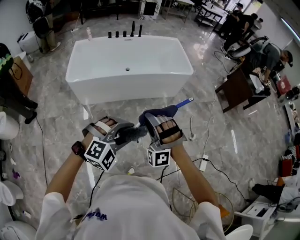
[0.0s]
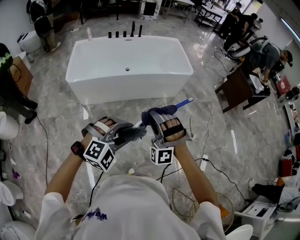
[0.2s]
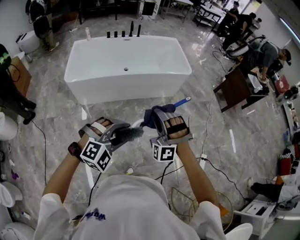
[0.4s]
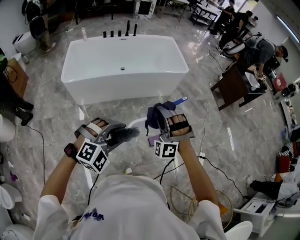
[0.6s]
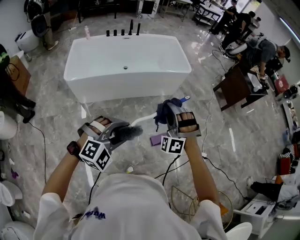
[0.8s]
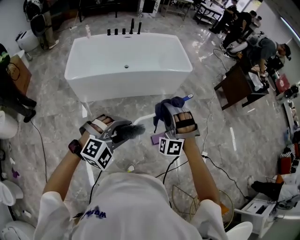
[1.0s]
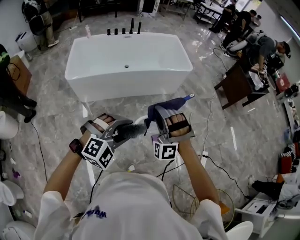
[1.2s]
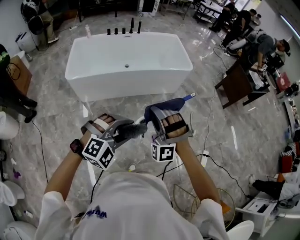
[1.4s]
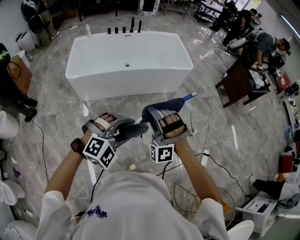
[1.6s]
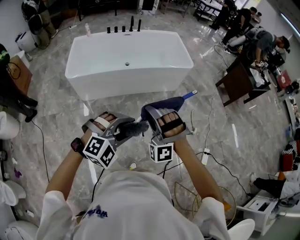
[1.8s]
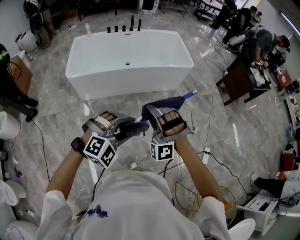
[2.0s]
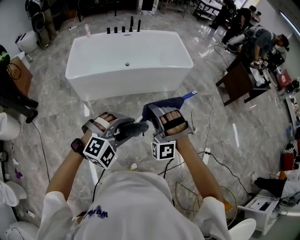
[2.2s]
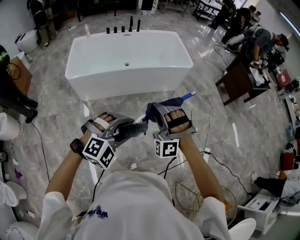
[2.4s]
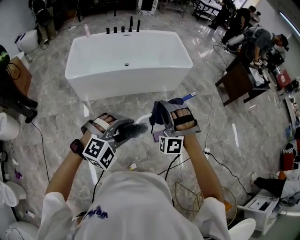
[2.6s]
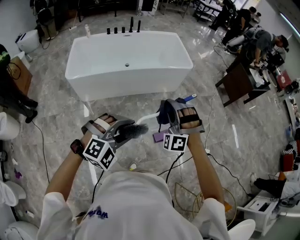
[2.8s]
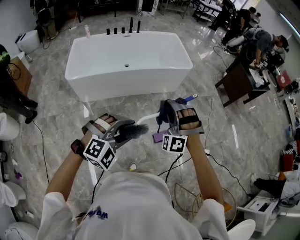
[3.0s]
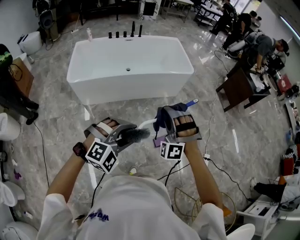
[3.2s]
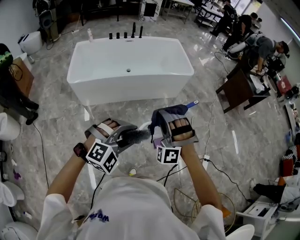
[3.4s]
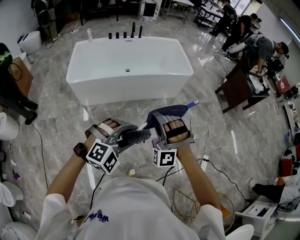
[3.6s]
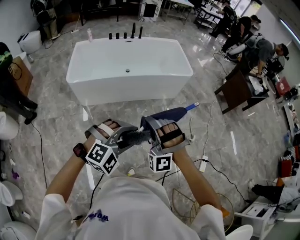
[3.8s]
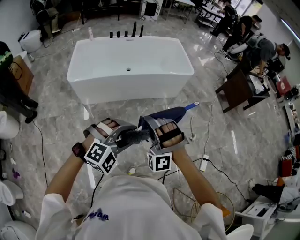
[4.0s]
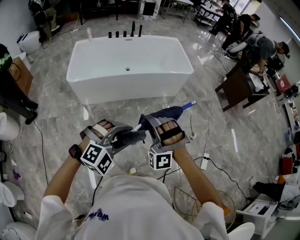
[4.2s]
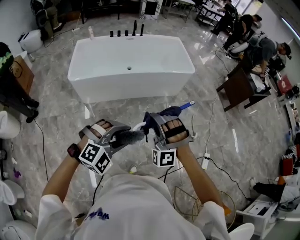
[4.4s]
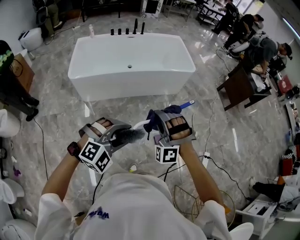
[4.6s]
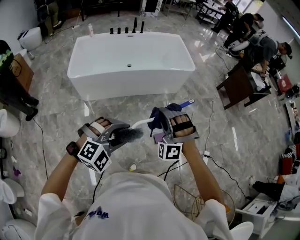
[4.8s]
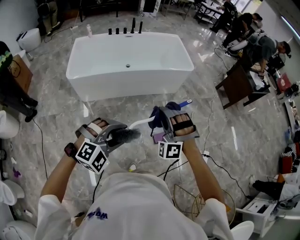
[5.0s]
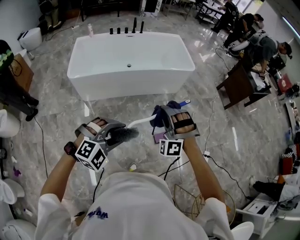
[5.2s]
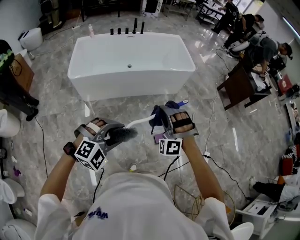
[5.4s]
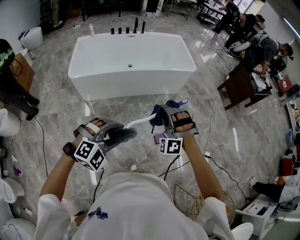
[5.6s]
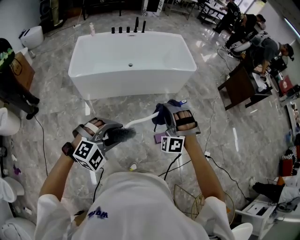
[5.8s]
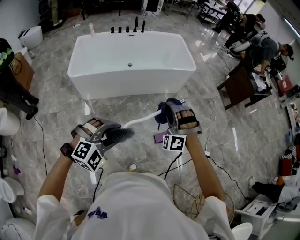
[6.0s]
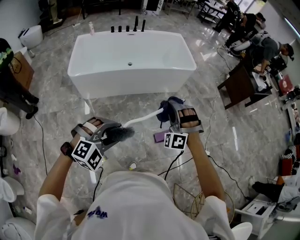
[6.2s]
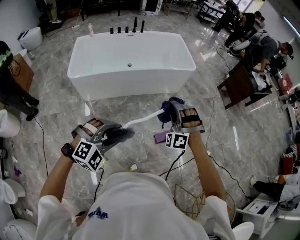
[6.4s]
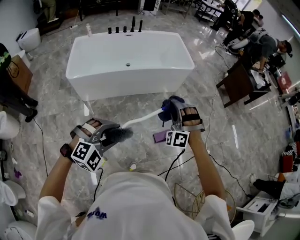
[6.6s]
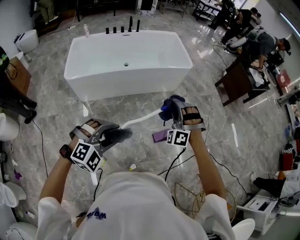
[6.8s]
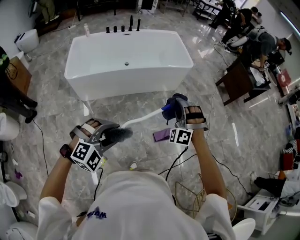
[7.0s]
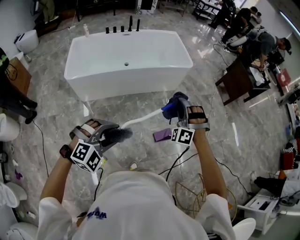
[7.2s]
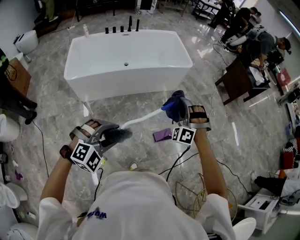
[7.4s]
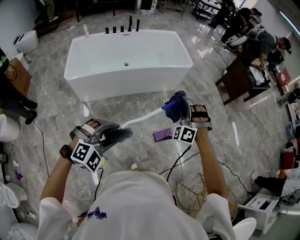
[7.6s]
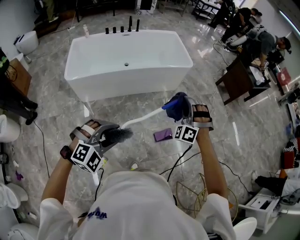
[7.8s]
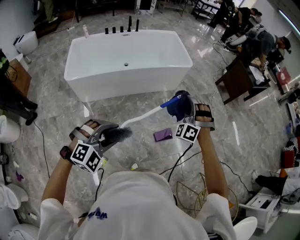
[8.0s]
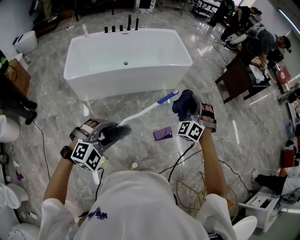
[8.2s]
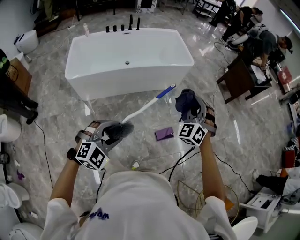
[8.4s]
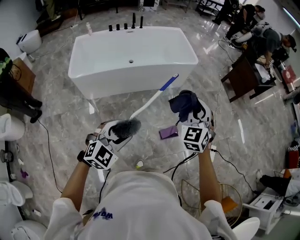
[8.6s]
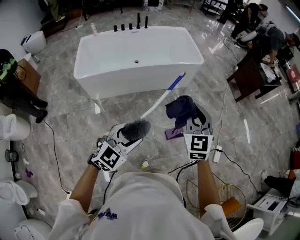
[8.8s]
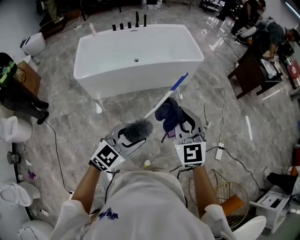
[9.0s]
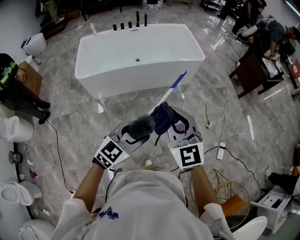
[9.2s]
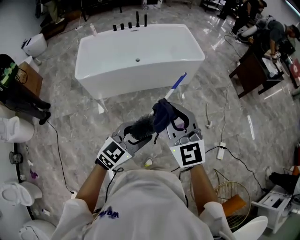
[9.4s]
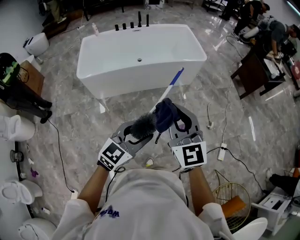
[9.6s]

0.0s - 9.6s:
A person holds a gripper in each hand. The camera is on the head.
3.2s - 4.8s: The left gripper moves approximately 5 cm.
8.0s - 9.6s: The left gripper ends up some 5 cm from where it was, and rotates around the line of its fingers by some 50 degrees, counterclockwise from behind.

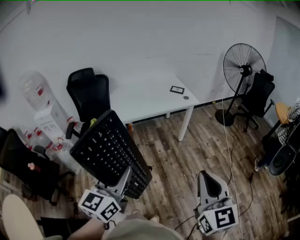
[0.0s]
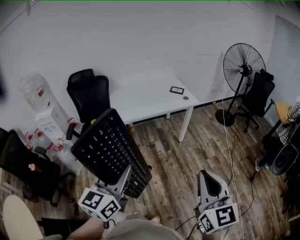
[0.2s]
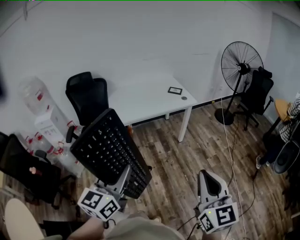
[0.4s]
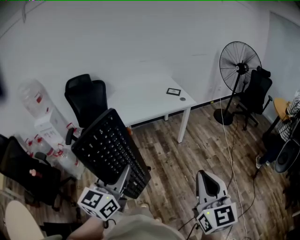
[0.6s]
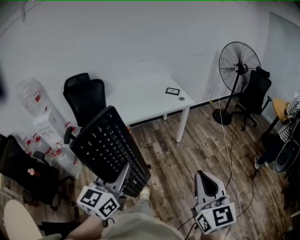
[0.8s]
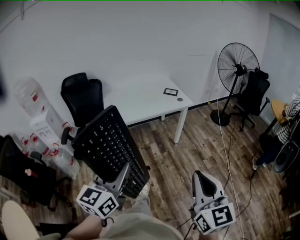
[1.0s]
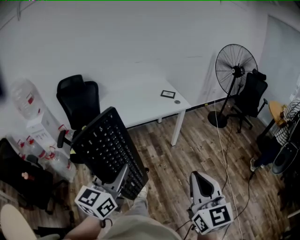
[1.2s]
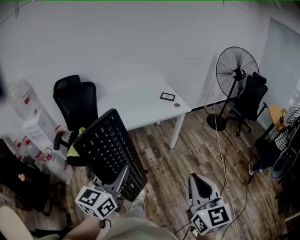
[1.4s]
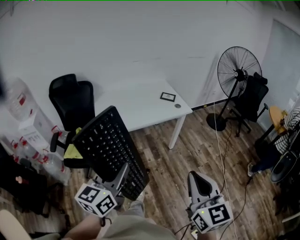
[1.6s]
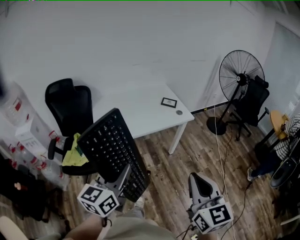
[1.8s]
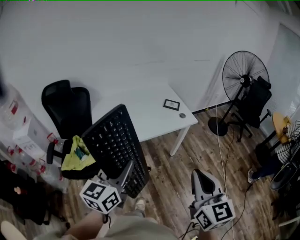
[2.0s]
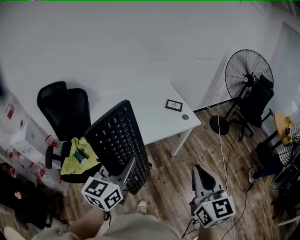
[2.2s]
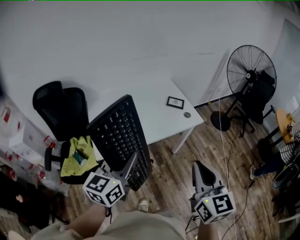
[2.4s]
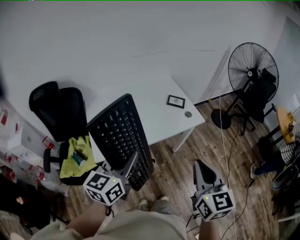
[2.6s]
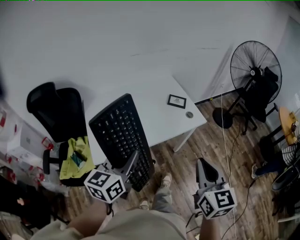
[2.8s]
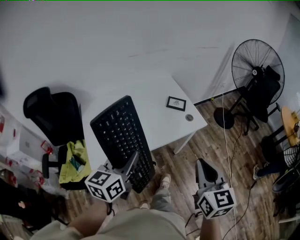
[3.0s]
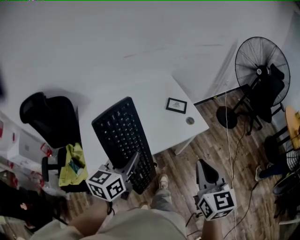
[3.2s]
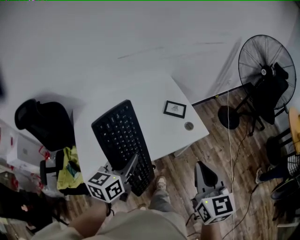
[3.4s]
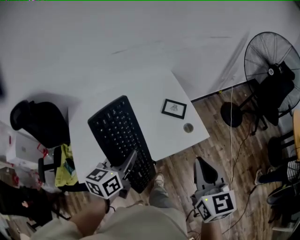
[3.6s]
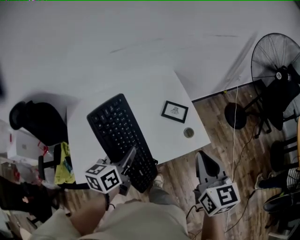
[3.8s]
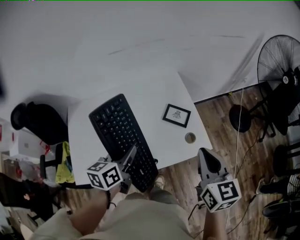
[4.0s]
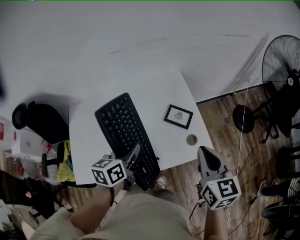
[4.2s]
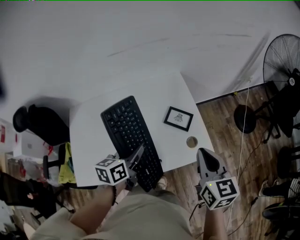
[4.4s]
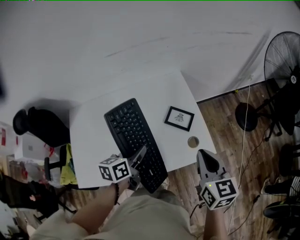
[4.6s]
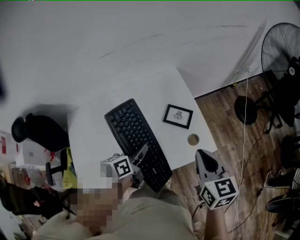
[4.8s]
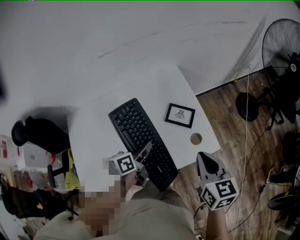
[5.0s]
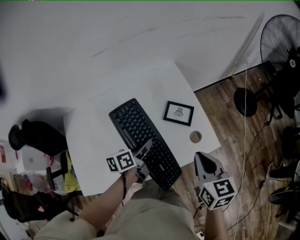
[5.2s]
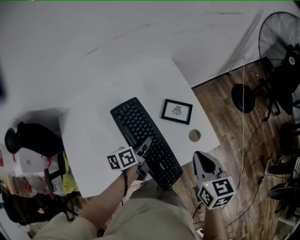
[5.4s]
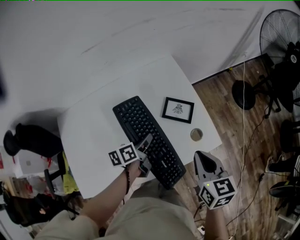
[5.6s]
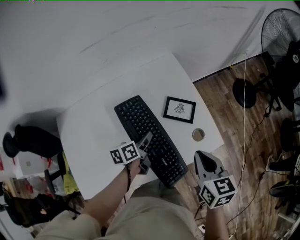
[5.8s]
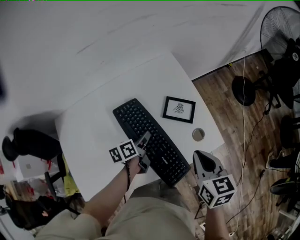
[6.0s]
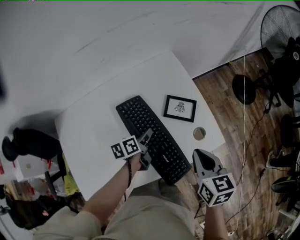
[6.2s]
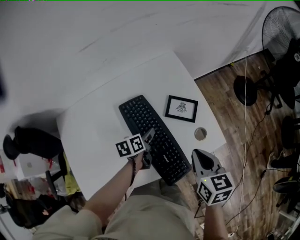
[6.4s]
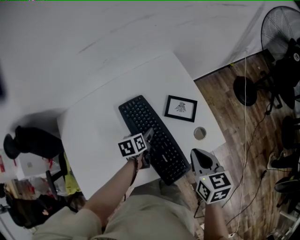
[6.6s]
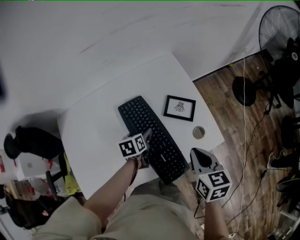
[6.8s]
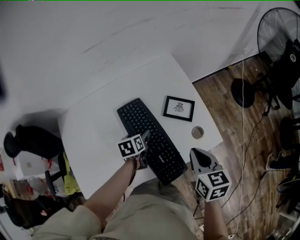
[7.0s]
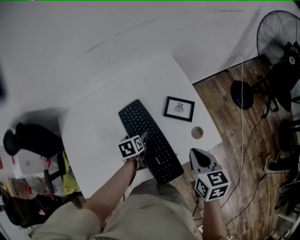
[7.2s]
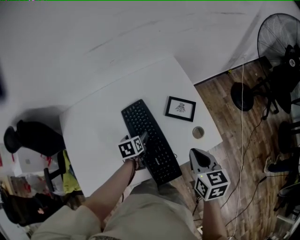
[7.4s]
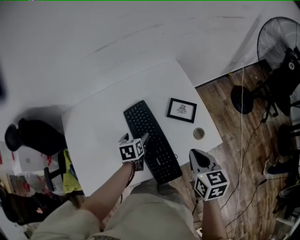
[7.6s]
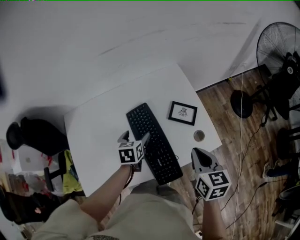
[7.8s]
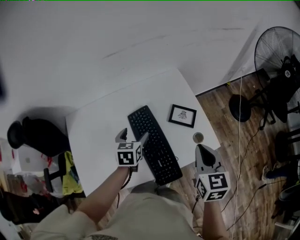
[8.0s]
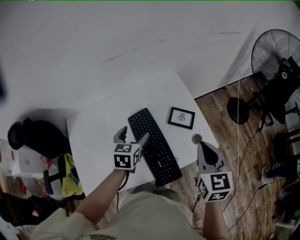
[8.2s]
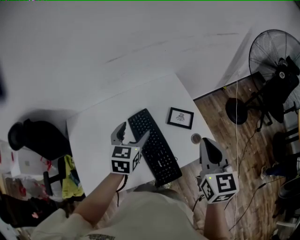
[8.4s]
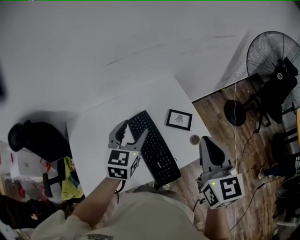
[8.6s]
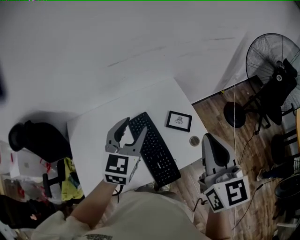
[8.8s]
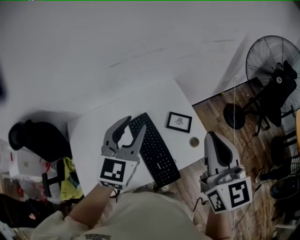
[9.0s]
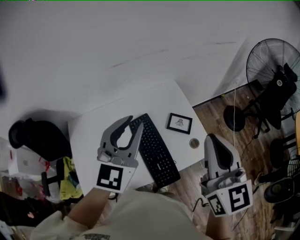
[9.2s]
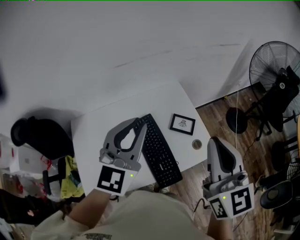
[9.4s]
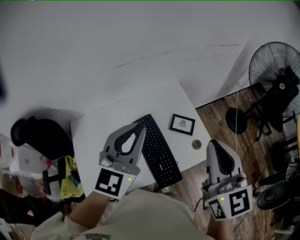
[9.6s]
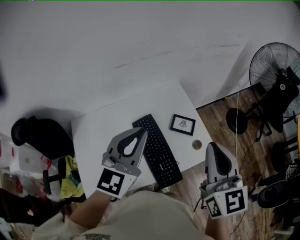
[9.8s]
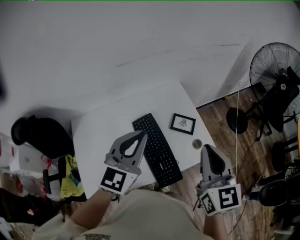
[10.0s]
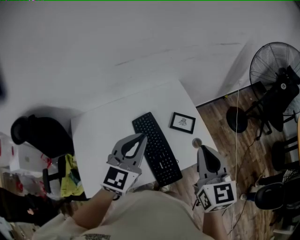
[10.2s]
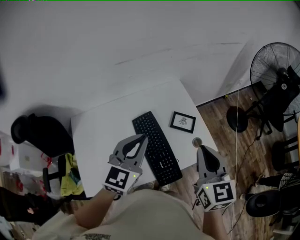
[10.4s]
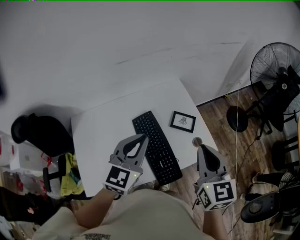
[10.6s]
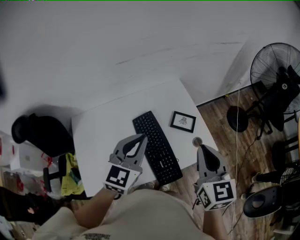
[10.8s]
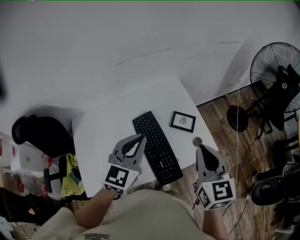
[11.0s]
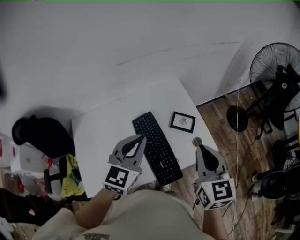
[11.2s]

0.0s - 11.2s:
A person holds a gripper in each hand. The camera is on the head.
0.0s - 1.6s: The grippers both shift forward by some 15 cm.
1.6s - 3.2s: The two grippers go roughly 40 cm forward.
3.2s - 4.8s: The right gripper heads forward, covering approximately 25 cm, while the left gripper is displaced forward and downward by about 30 cm, and changes its angle by some 30 degrees.
4.8s - 6.4s: The right gripper goes some 10 cm downward. The left gripper shifts approximately 15 cm downward and forward, and opens its fingers.
6.4s - 8.0s: The right gripper goes about 10 cm upward, while the left gripper heads upward and to the left, covering about 15 cm, swivels about 30 degrees, and opens.
8.0s - 9.6s: The left gripper shifts roughly 30 cm upward, tilts its fingers approximately 40 degrees upward, and closes up. Meanwhile the right gripper moves upward, about 20 cm, and rotates some 30 degrees.
9.6s - 11.2s: The grippers both shift downward by roughly 10 cm.

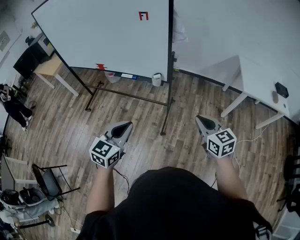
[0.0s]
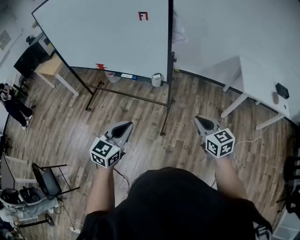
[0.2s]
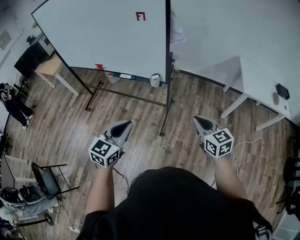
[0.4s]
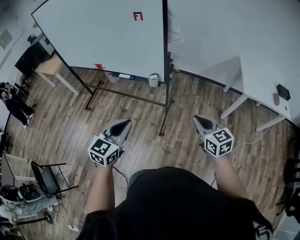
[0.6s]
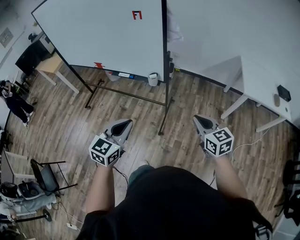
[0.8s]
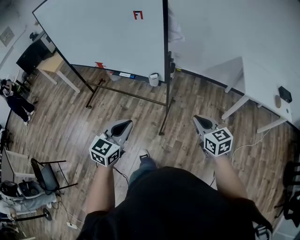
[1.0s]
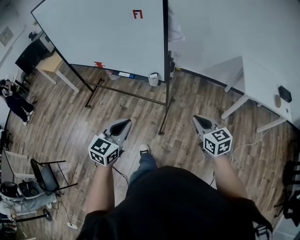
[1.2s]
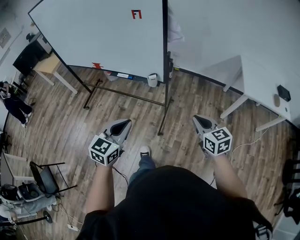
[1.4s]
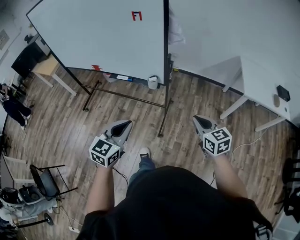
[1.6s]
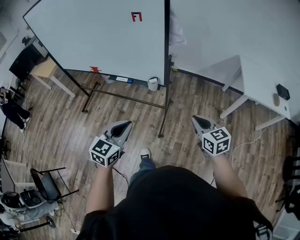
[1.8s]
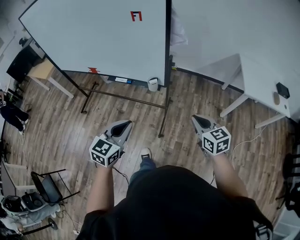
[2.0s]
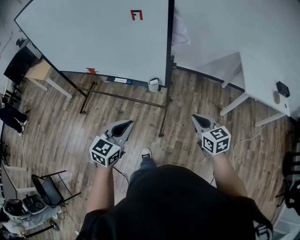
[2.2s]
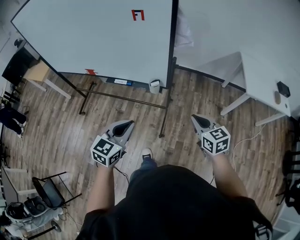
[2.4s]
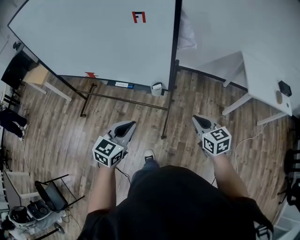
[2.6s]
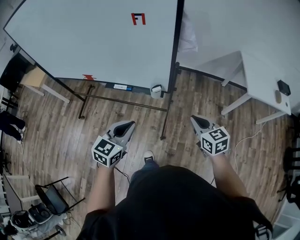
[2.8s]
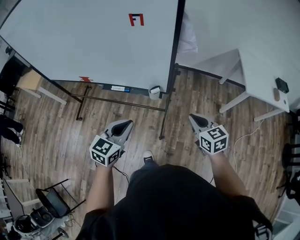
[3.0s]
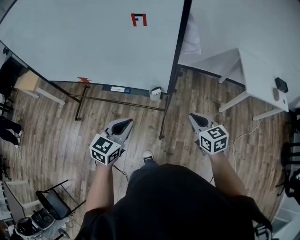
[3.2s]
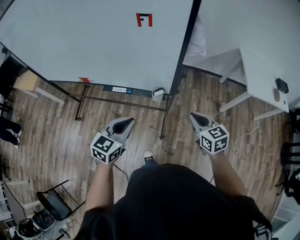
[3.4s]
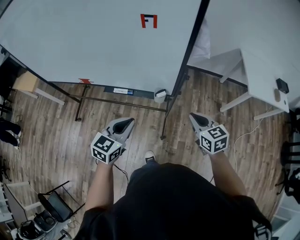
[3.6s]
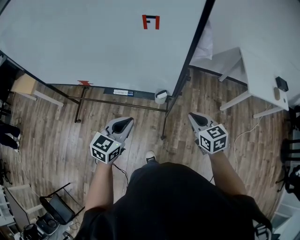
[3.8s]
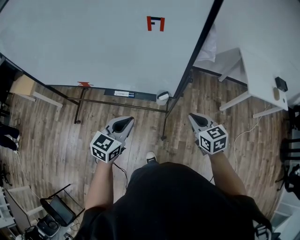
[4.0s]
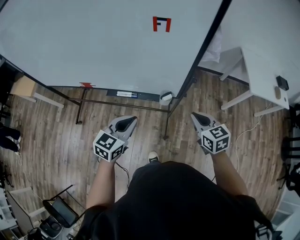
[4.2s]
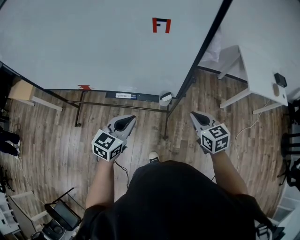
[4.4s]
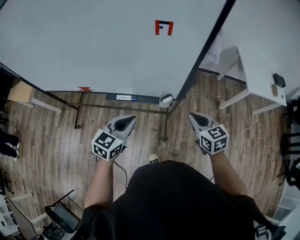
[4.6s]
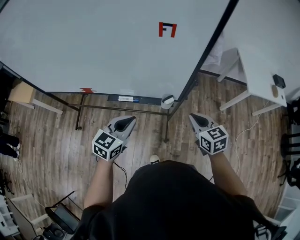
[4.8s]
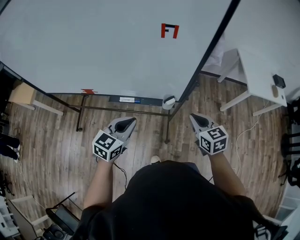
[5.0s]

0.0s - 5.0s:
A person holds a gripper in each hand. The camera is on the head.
0.0s - 1.6s: The two grippers go approximately 5 cm forward.
1.6s - 3.4s: Both grippers move forward and to the left, about 20 cm.
3.4s - 5.0s: The left gripper shifts roughly 10 cm to the left and forward. Meanwhile the right gripper moves to the left, roughly 10 cm.
